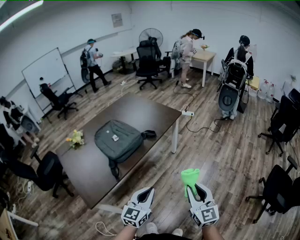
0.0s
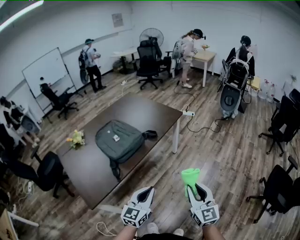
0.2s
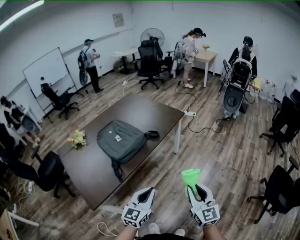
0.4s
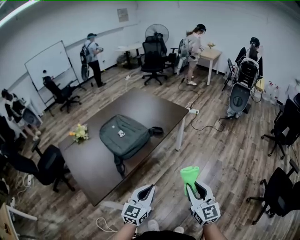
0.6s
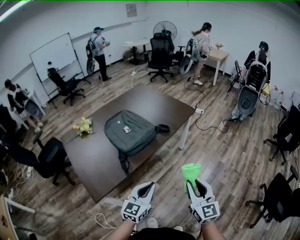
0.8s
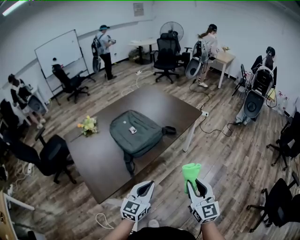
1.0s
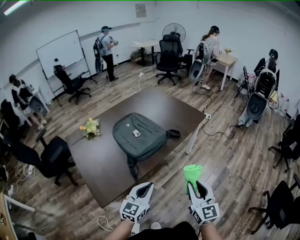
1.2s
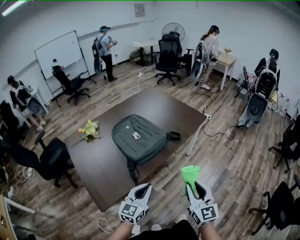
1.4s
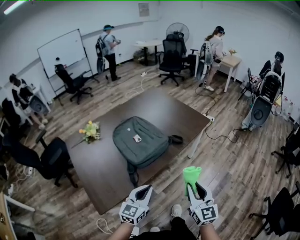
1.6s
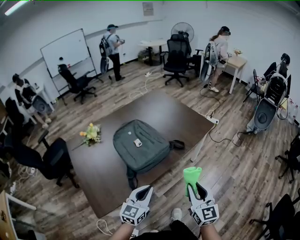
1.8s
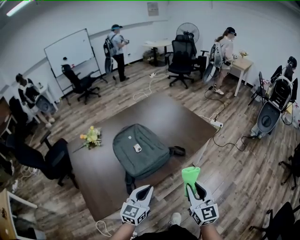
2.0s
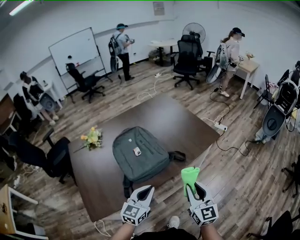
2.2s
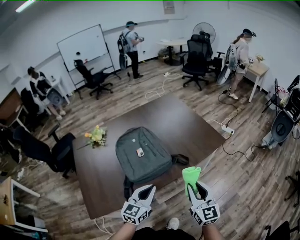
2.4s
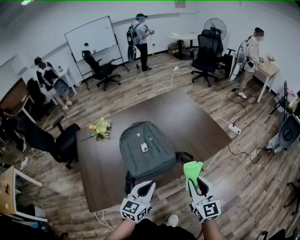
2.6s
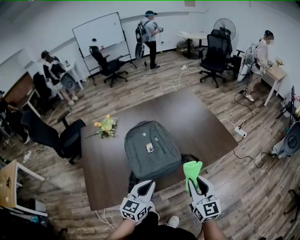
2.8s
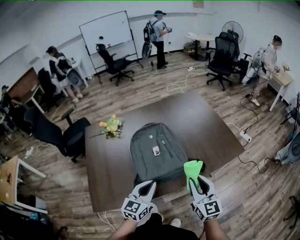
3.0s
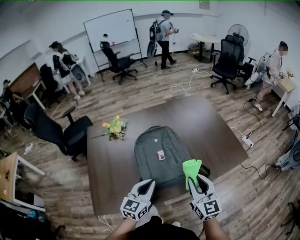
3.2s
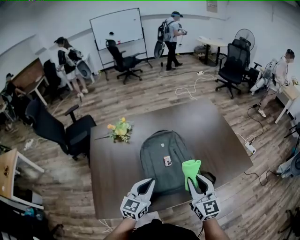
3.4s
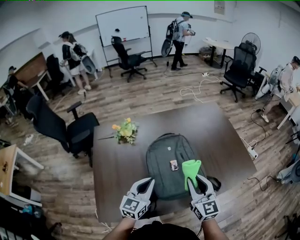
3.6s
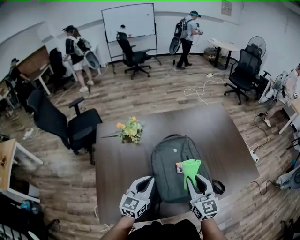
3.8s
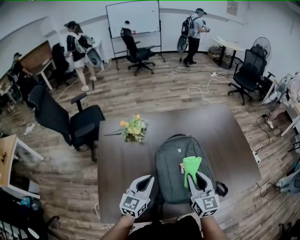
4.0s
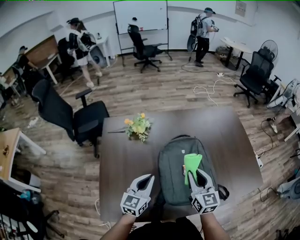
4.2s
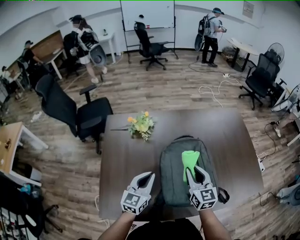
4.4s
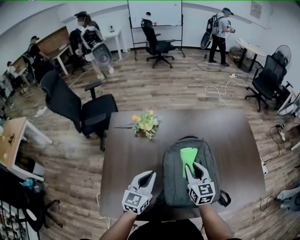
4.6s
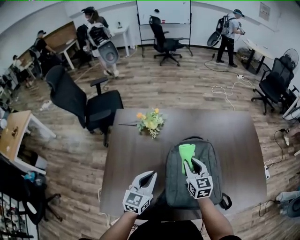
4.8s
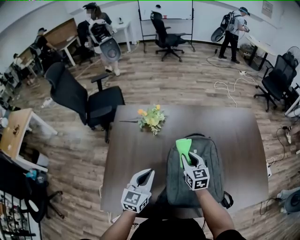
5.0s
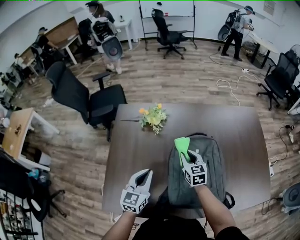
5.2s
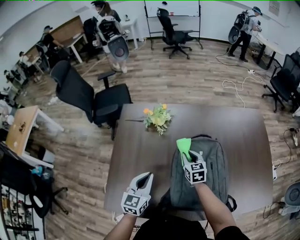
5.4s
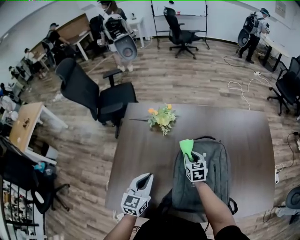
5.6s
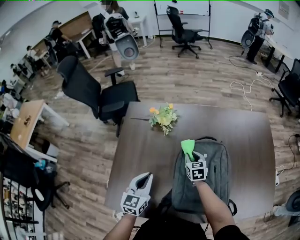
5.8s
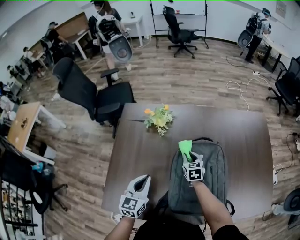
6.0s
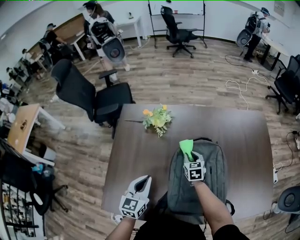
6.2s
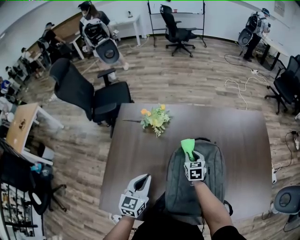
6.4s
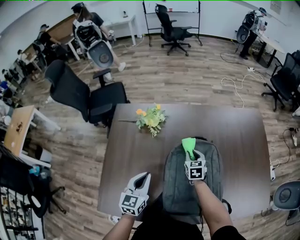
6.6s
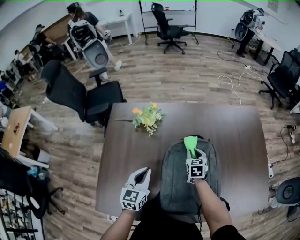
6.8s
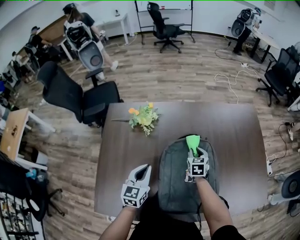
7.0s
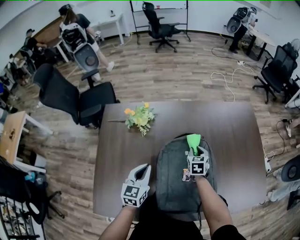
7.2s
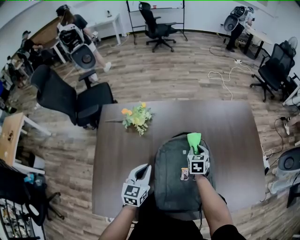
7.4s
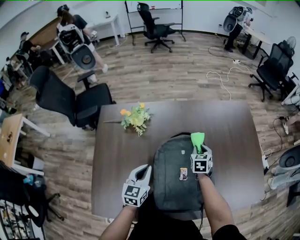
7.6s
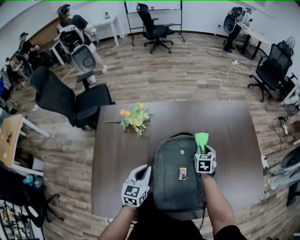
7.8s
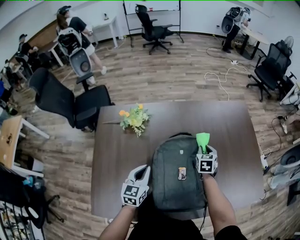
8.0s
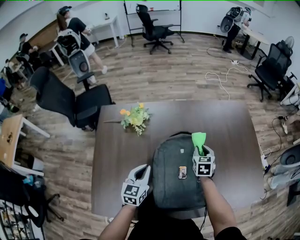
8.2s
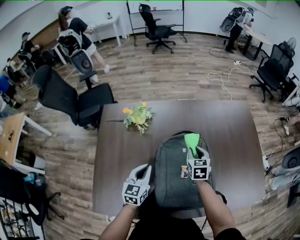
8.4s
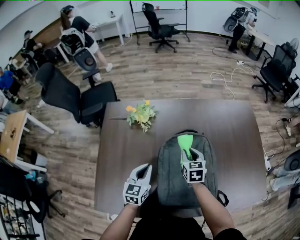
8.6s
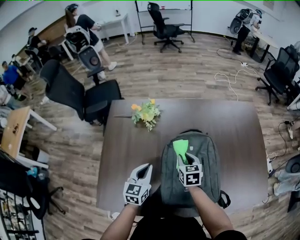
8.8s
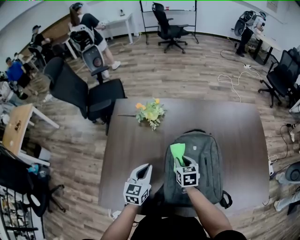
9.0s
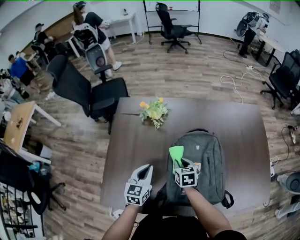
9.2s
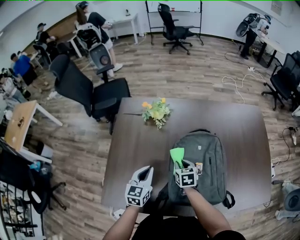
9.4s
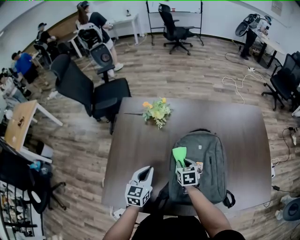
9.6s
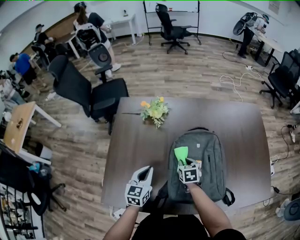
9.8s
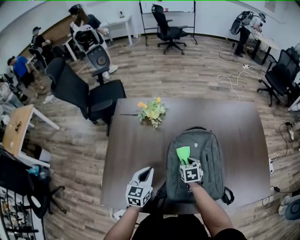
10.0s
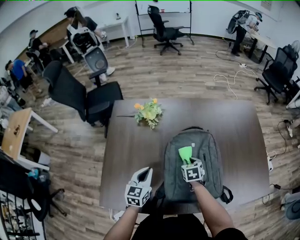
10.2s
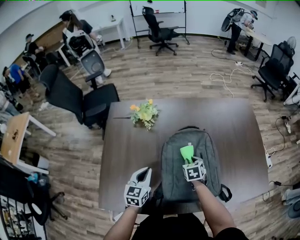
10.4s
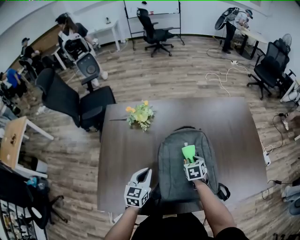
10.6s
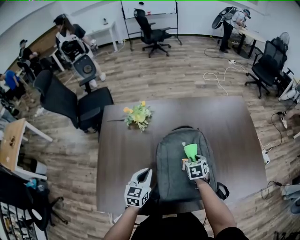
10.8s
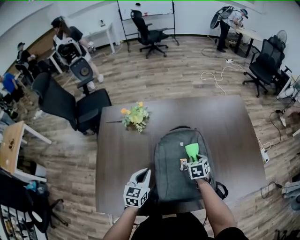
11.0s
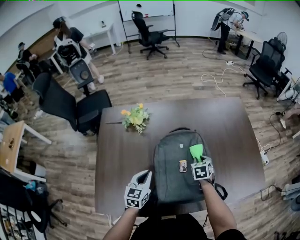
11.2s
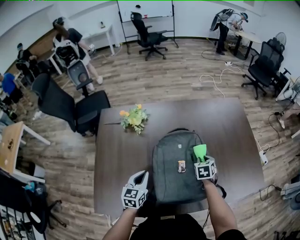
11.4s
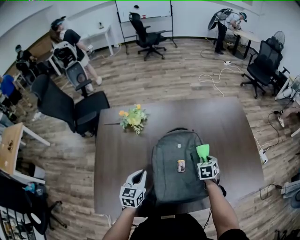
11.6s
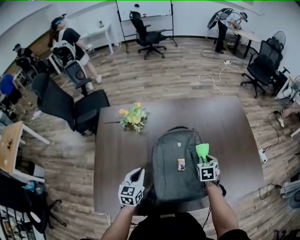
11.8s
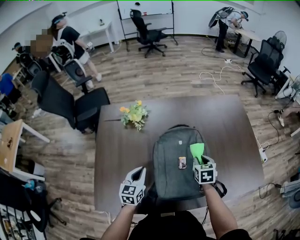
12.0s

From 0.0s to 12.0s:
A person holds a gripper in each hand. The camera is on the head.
From 0.0s to 1.6s: The two grippers go approximately 20 cm to the left and forward.
From 1.6s to 3.0s: The grippers both shift forward by some 20 cm. The left gripper turns by roughly 20 degrees. Meanwhile the right gripper turns by some 20 degrees.
From 3.0s to 4.4s: The right gripper goes about 30 cm forward and to the left. Meanwhile the left gripper goes approximately 25 cm to the left and forward.
From 4.4s to 6.0s: The left gripper is displaced to the left by about 5 cm. The right gripper heads downward and forward, covering approximately 25 cm, and turns by about 30 degrees.
From 6.0s to 7.6s: The left gripper heads to the right and forward, covering approximately 10 cm, while the right gripper moves to the right, roughly 15 cm, and changes its angle by roughly 20 degrees.
From 7.6s to 9.0s: The right gripper moves to the left and backward, about 20 cm, and swivels approximately 20 degrees; the left gripper ends up some 5 cm from where it was.
From 9.0s to 10.4s: The right gripper heads to the right, covering approximately 5 cm.
From 10.4s to 12.0s: The right gripper heads to the right and upward, covering about 10 cm.

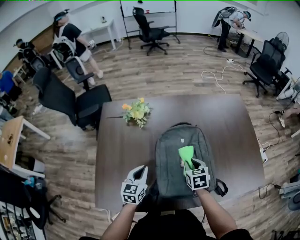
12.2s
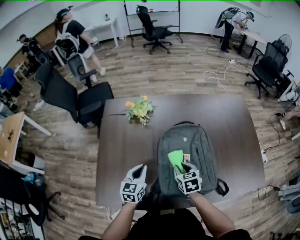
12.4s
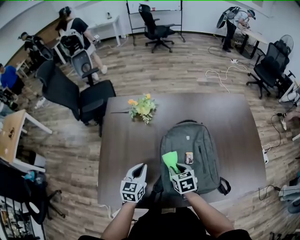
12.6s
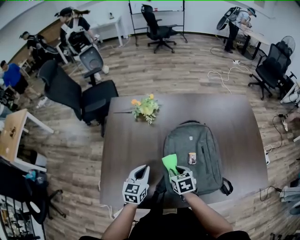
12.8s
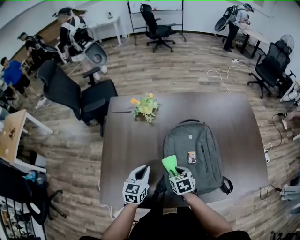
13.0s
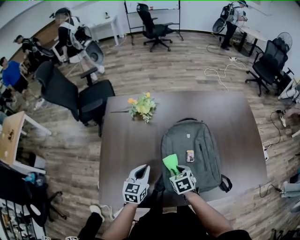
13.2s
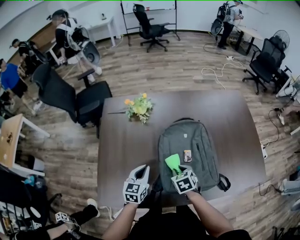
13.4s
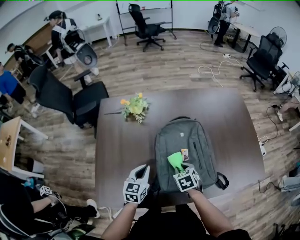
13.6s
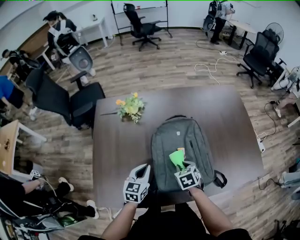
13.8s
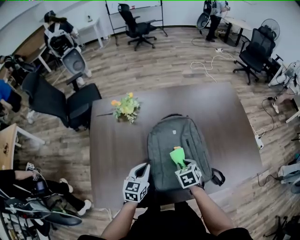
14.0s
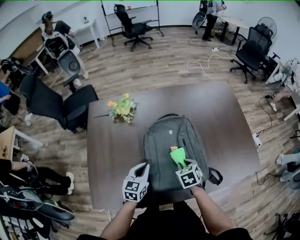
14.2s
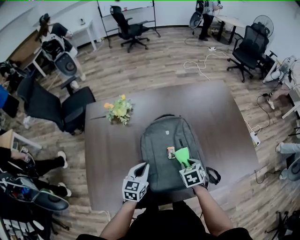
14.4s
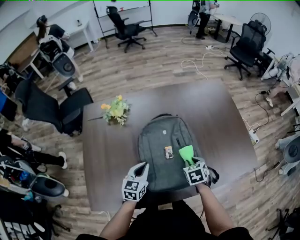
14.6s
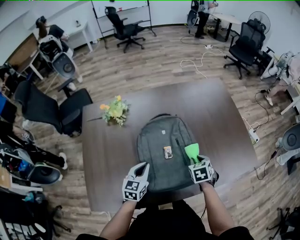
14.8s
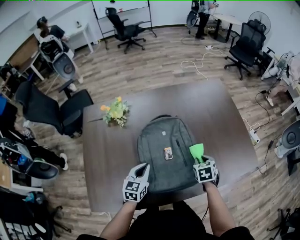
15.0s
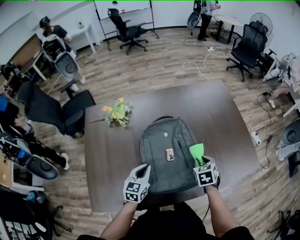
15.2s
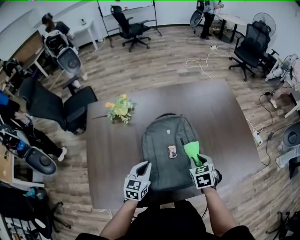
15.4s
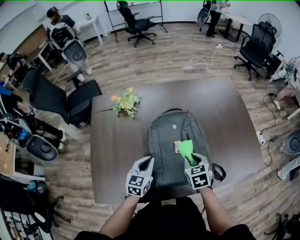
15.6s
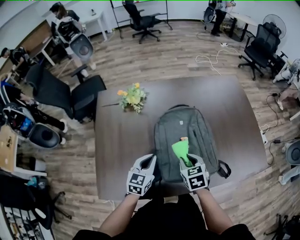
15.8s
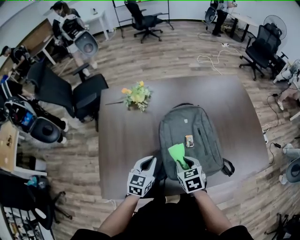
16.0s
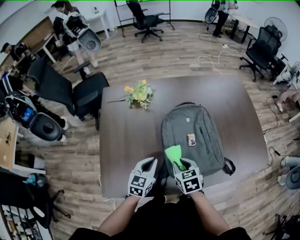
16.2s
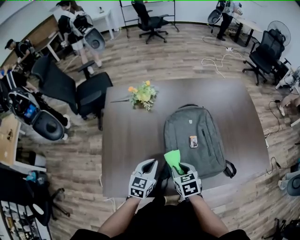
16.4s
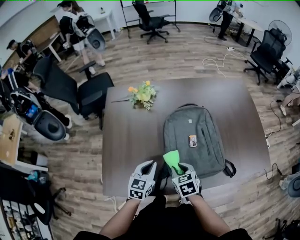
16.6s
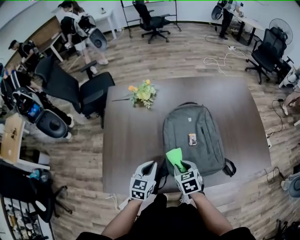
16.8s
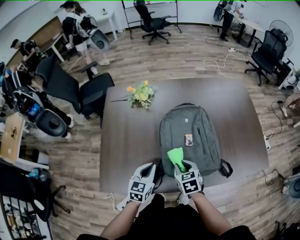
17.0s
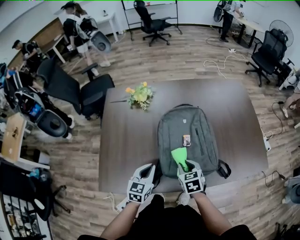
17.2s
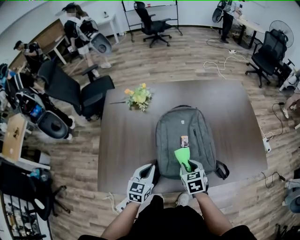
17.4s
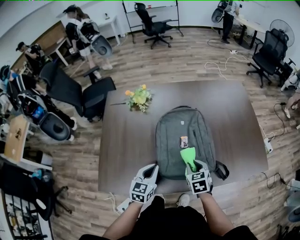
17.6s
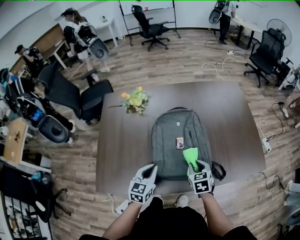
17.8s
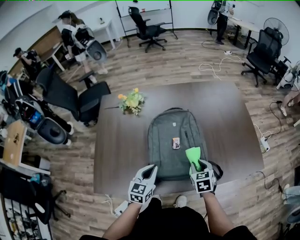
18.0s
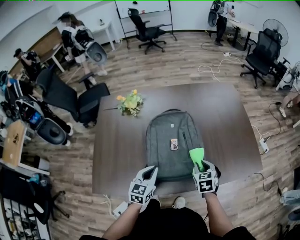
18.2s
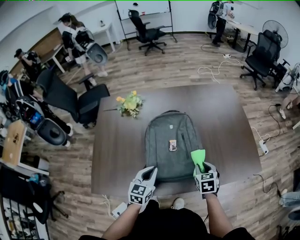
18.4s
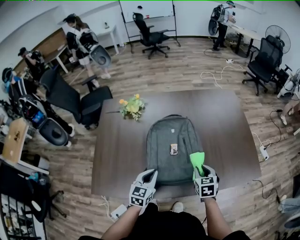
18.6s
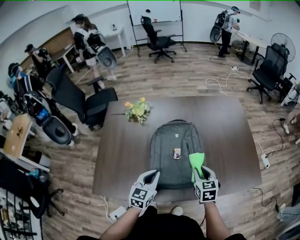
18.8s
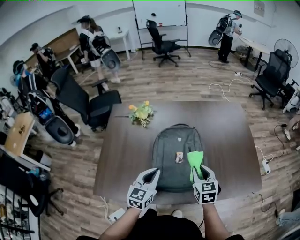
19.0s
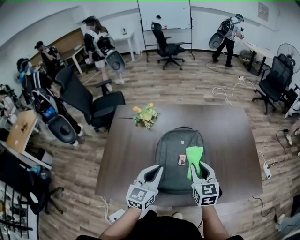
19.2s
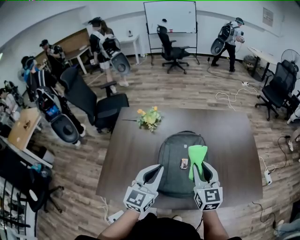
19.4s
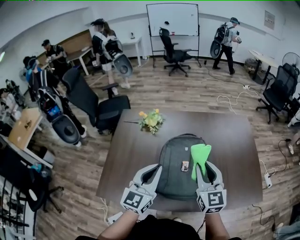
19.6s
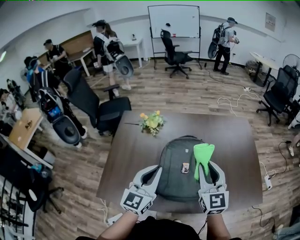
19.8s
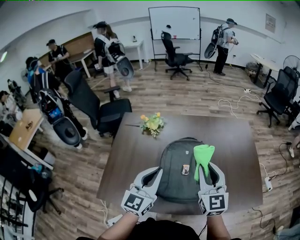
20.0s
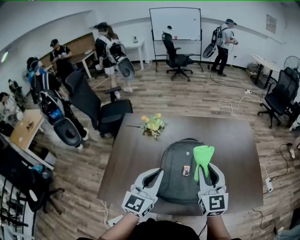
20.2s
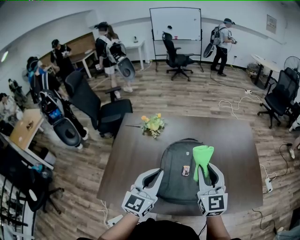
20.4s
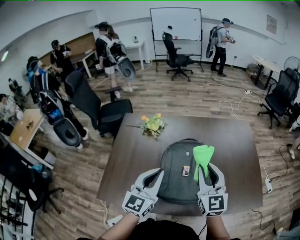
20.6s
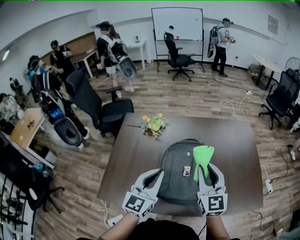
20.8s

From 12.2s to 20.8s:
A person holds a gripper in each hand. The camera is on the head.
From 12.2s to 13.6s: The right gripper shifts some 5 cm to the left.
From 13.6s to 15.0s: The left gripper heads to the right, covering roughly 10 cm, while the right gripper travels to the right by some 20 cm.
From 15.0s to 16.6s: The right gripper is displaced to the left and backward by about 25 cm, and turns by about 20 degrees; the left gripper moves to the left and backward, approximately 10 cm.
From 16.6s to 18.0s: The right gripper goes some 20 cm to the right; the left gripper travels to the right by some 10 cm.
From 18.0s to 19.4s: Both grippers move upward, some 20 cm. The left gripper changes its angle by approximately 20 degrees; the right gripper tilts its fingers roughly 40 degrees upward.
From 19.4s to 20.8s: The right gripper is displaced upward by about 5 cm.

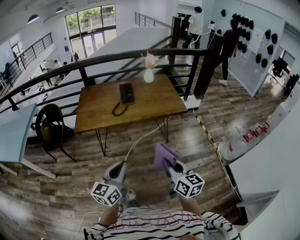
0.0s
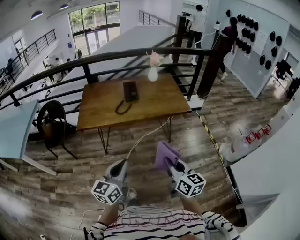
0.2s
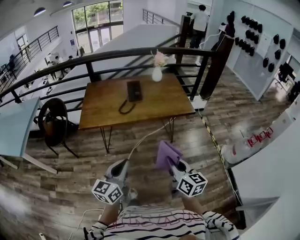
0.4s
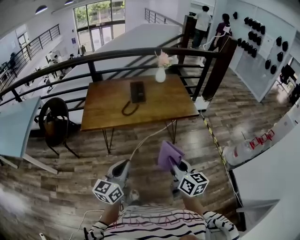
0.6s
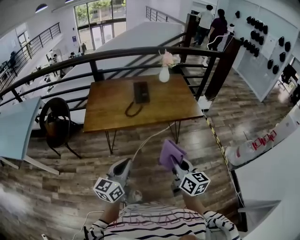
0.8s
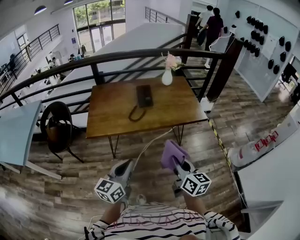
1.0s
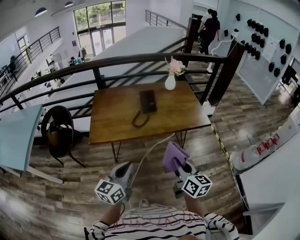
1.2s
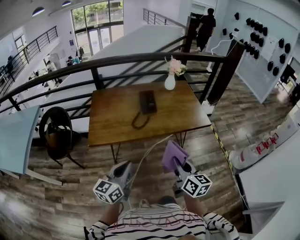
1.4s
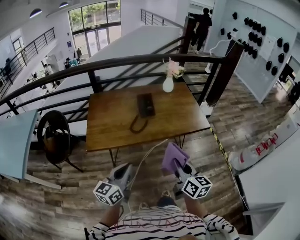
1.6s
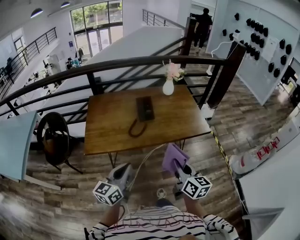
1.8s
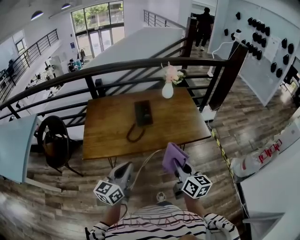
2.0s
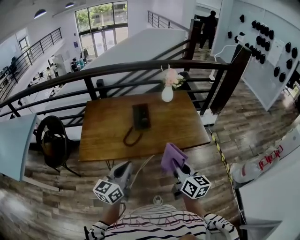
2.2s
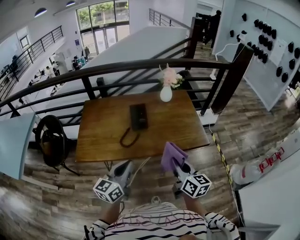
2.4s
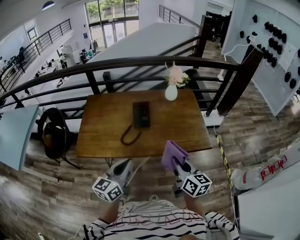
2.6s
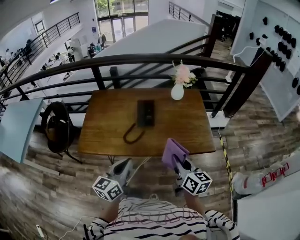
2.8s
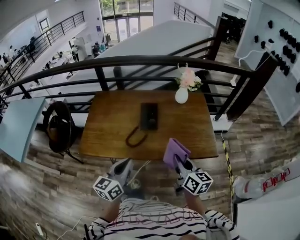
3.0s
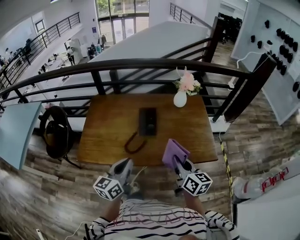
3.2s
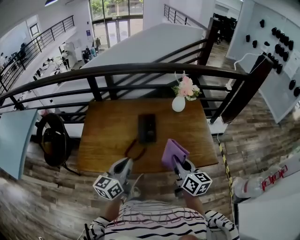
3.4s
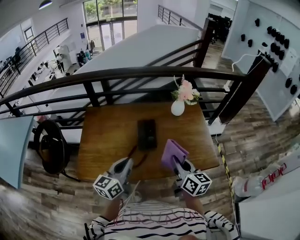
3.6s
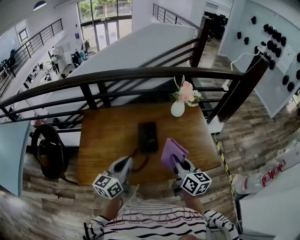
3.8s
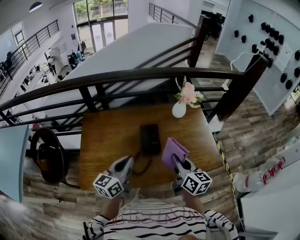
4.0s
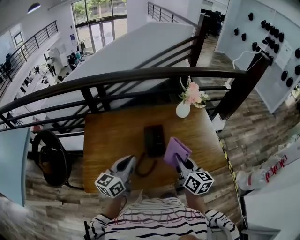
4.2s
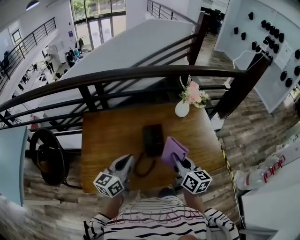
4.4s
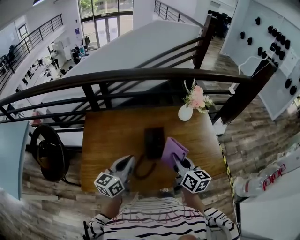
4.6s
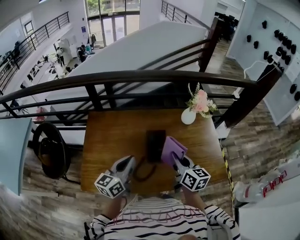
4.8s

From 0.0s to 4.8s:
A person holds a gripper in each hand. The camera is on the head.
From 0.0s to 1.6s: Both grippers travel together forward and to the left, about 25 cm.
From 1.6s to 3.2s: The two grippers go about 30 cm forward.
From 3.2s to 4.8s: Both grippers travel together forward and to the left, some 25 cm.
